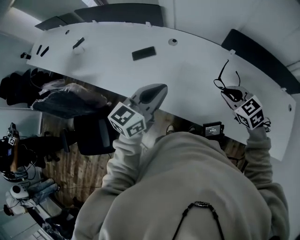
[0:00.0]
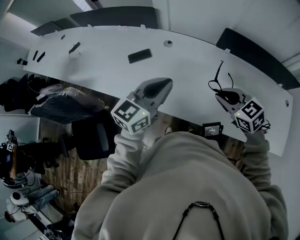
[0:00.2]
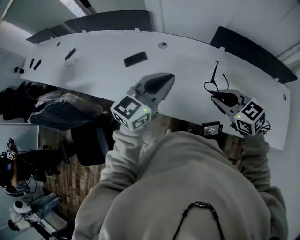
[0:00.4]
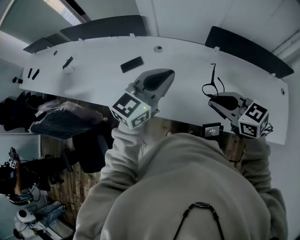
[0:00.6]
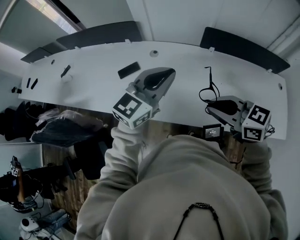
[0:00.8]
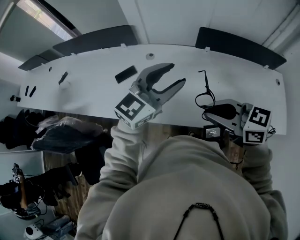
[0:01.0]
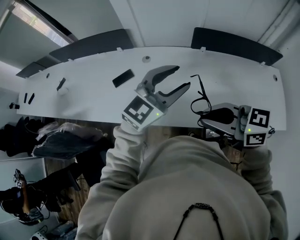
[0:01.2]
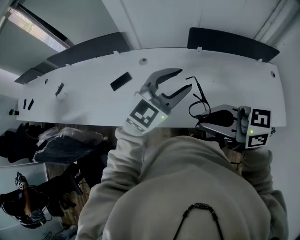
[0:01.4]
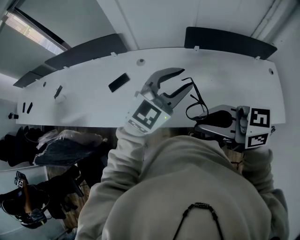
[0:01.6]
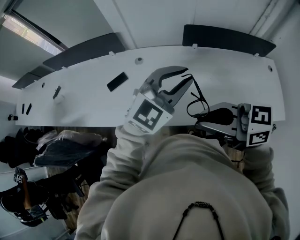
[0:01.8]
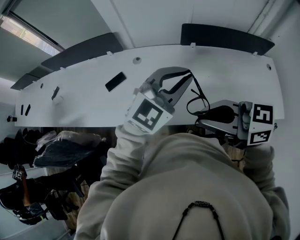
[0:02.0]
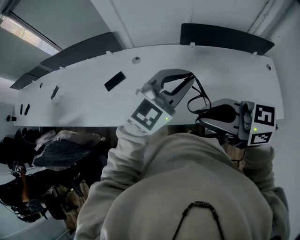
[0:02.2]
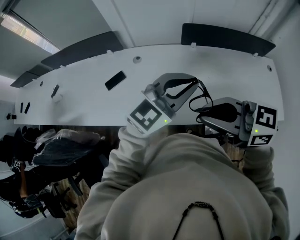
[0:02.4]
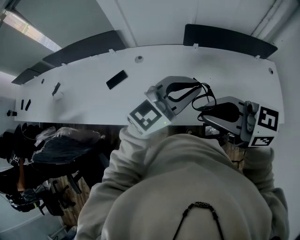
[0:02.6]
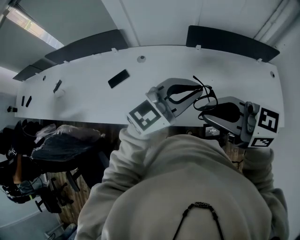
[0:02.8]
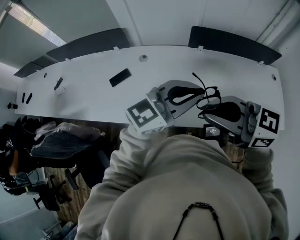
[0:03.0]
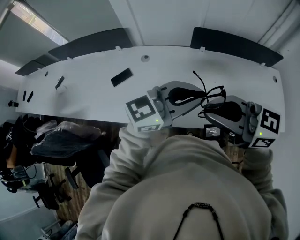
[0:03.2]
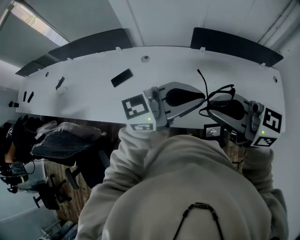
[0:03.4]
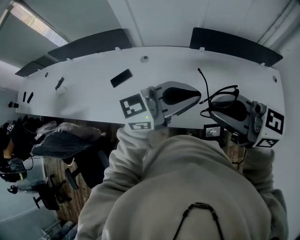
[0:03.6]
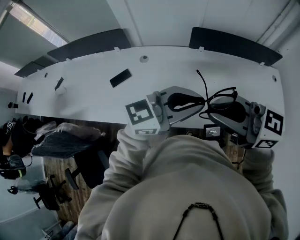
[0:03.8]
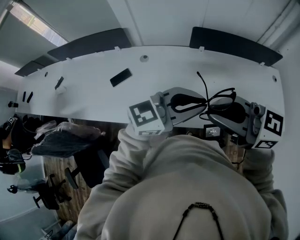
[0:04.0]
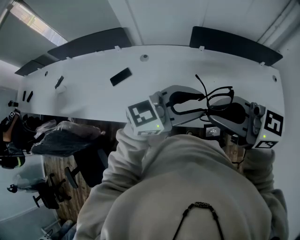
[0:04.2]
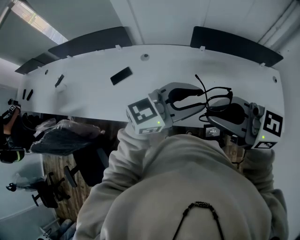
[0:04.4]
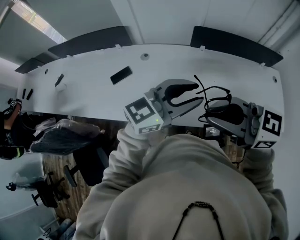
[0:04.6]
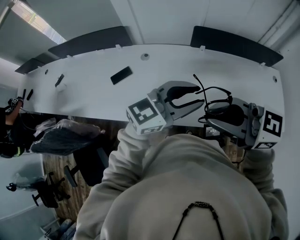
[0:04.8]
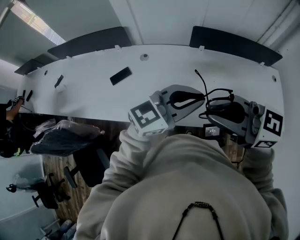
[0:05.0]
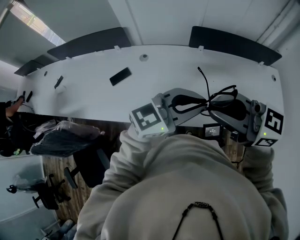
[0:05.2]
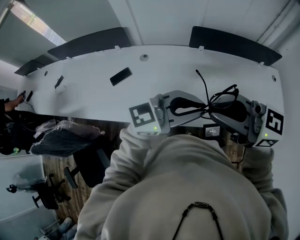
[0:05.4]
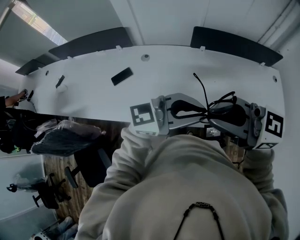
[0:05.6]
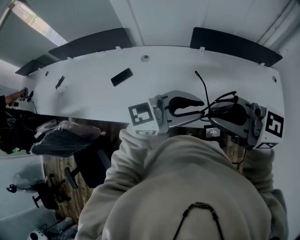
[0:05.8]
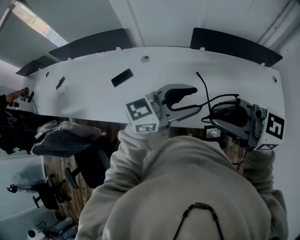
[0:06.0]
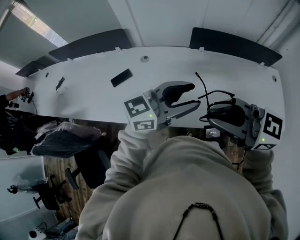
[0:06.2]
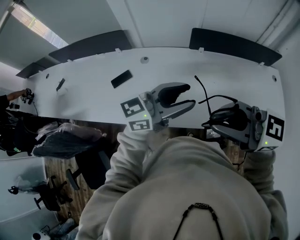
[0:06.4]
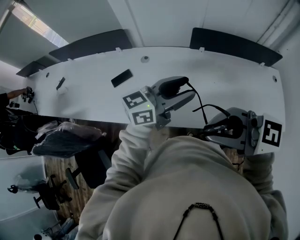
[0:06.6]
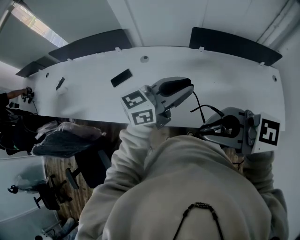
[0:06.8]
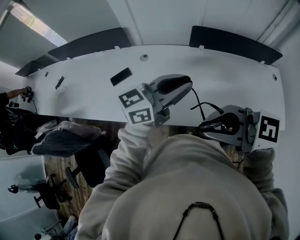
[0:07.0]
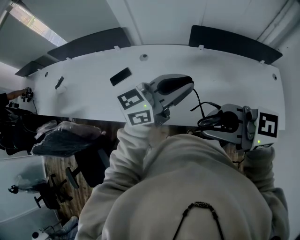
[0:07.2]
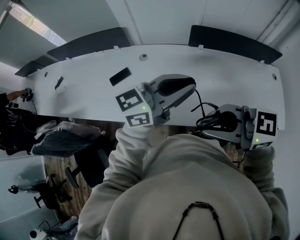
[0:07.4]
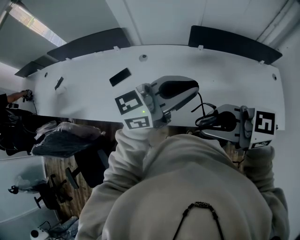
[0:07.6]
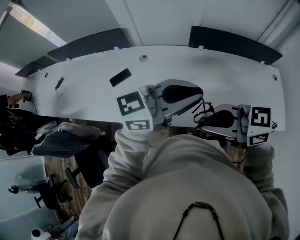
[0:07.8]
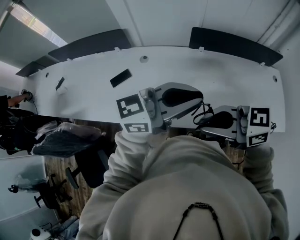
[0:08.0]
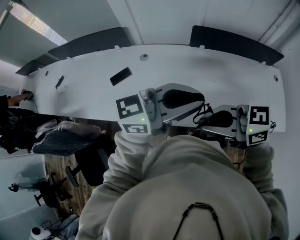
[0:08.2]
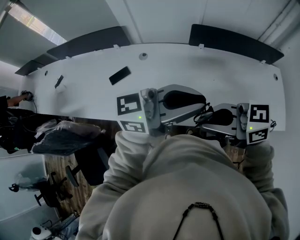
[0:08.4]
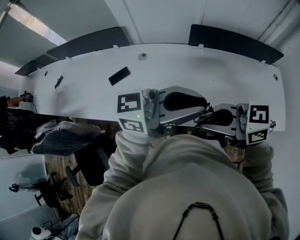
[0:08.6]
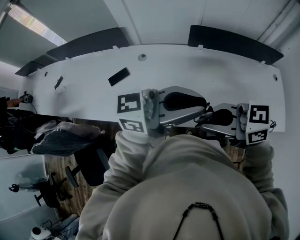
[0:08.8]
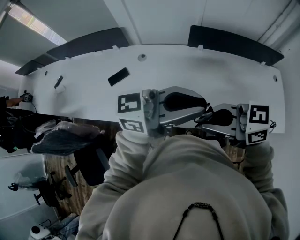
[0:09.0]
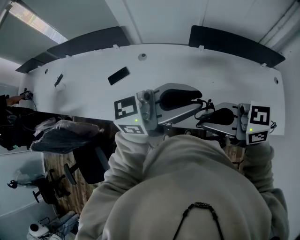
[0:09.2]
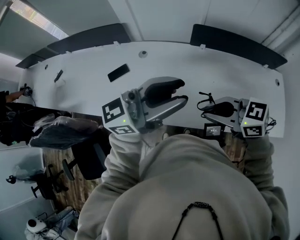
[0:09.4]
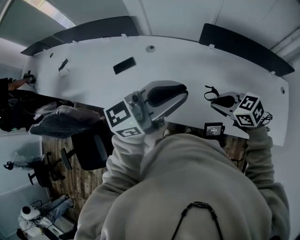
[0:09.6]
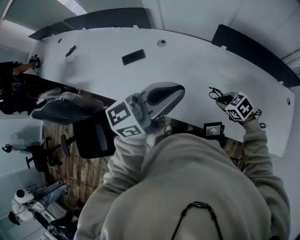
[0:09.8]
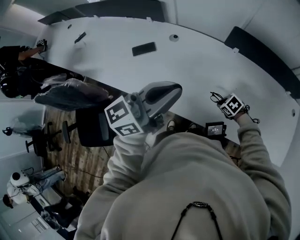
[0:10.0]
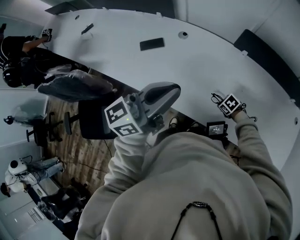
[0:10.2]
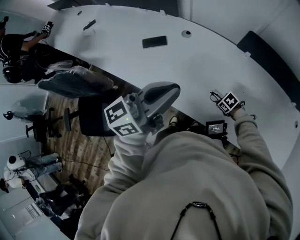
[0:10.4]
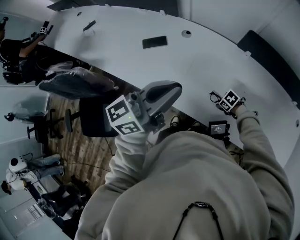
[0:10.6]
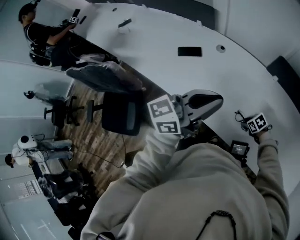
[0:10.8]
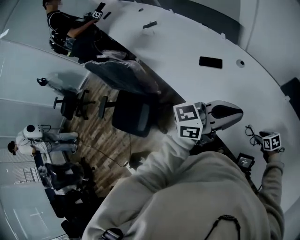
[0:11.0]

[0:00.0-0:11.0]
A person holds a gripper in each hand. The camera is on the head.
0.0 to 1.6 s: The right gripper is displaced upward by about 20 cm, and tips its fingers upward by roughly 30 degrees. Meanwhile the left gripper moves some 20 cm, rotates approximately 50 degrees, and opens up.
1.6 to 3.2 s: The left gripper shifts by approximately 5 cm, turns by roughly 30 degrees, and closes up. Meanwhile the right gripper ends up approximately 5 cm from where it was.
3.2 to 4.8 s: The left gripper opens.
4.8 to 6.2 s: The left gripper closes, then reopens.
6.2 to 7.8 s: The right gripper heads downward, covering roughly 5 cm, while the left gripper closes up.
7.8 to 9.4 s: The left gripper opens its fingers. The right gripper shifts by roughly 10 cm.
9.4 to 11.0 s: The left gripper shifts by about 10 cm, rotates roughly 30 degrees, and closes its fingers. The right gripper travels downward by roughly 35 cm, points its fingers roughly 40 degrees further downward, and opens its fingers.

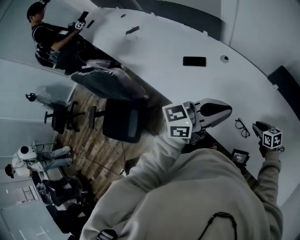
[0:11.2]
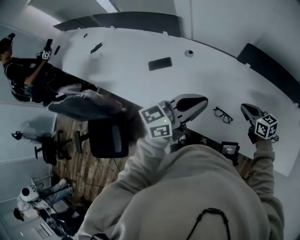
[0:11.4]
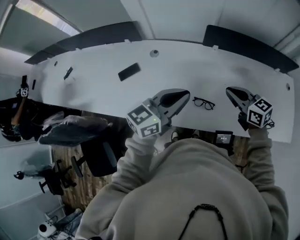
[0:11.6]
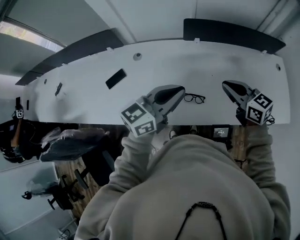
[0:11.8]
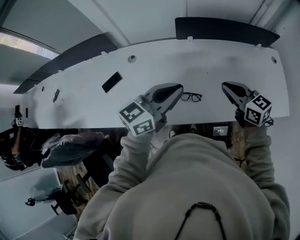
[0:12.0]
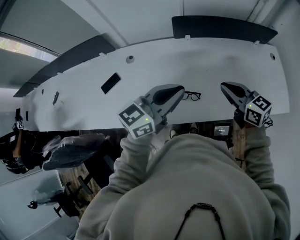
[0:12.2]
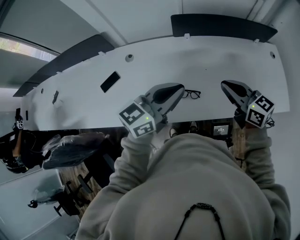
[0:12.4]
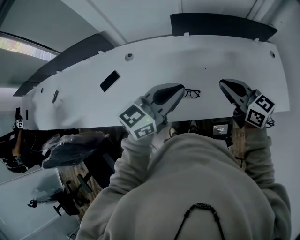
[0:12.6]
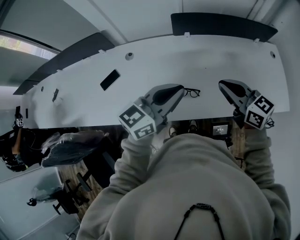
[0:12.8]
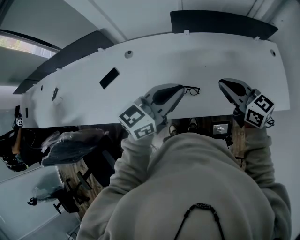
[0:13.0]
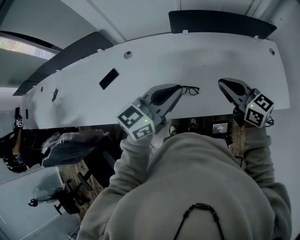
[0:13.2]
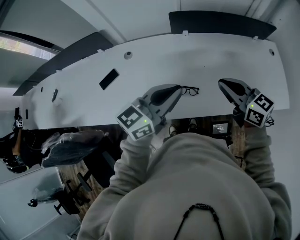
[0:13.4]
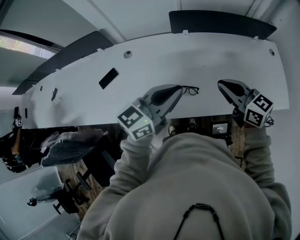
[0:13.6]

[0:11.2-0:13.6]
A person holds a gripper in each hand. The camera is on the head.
11.2 to 12.4 s: The left gripper ends up approximately 15 cm from where it was, and turns by some 20 degrees, while the right gripper goes approximately 25 cm upward, points its fingers roughly 30 degrees further upward, and closes.
12.4 to 13.6 s: There are only small adjustments of the grippers.

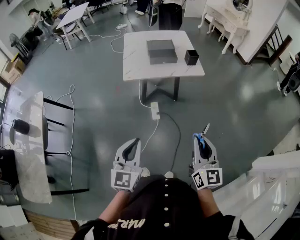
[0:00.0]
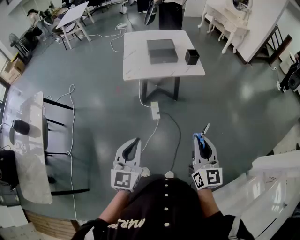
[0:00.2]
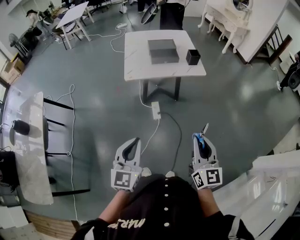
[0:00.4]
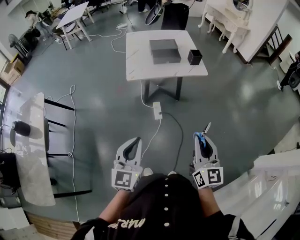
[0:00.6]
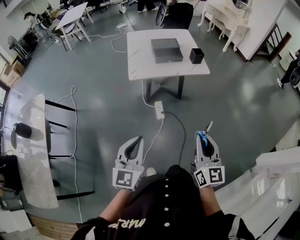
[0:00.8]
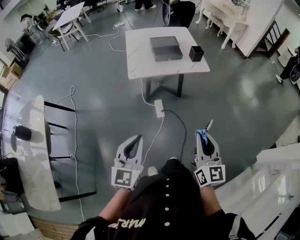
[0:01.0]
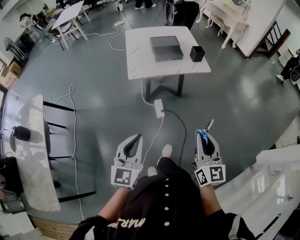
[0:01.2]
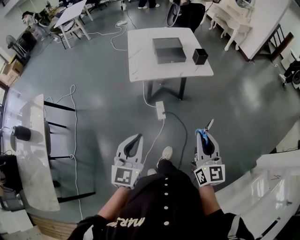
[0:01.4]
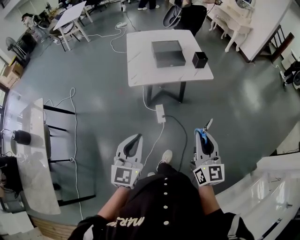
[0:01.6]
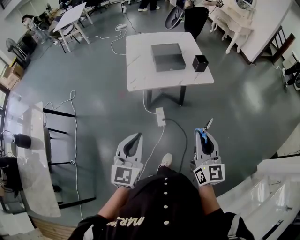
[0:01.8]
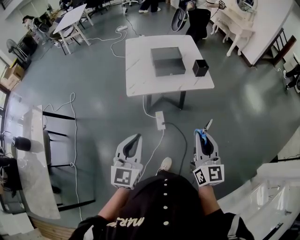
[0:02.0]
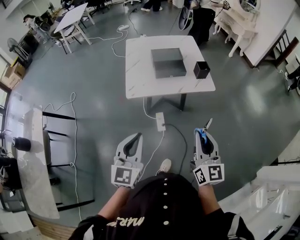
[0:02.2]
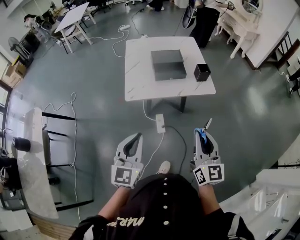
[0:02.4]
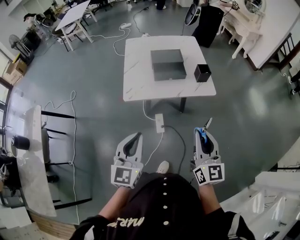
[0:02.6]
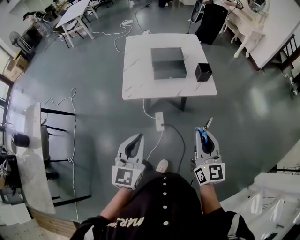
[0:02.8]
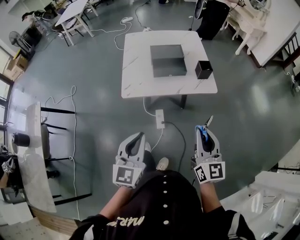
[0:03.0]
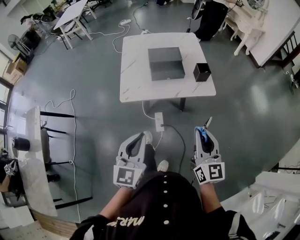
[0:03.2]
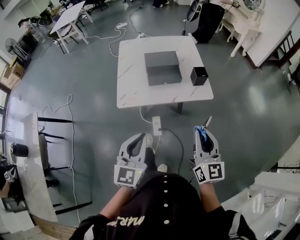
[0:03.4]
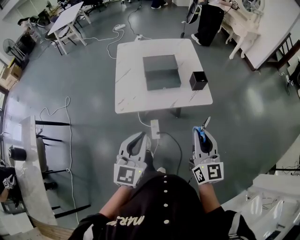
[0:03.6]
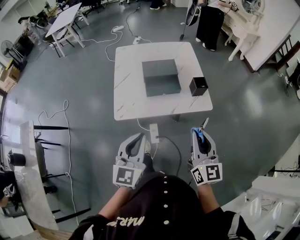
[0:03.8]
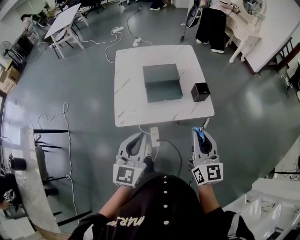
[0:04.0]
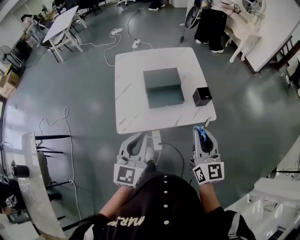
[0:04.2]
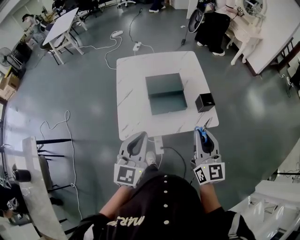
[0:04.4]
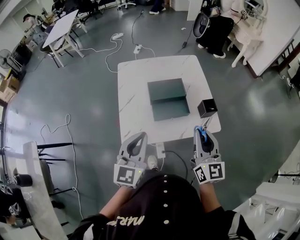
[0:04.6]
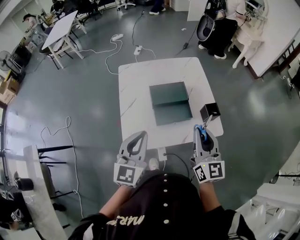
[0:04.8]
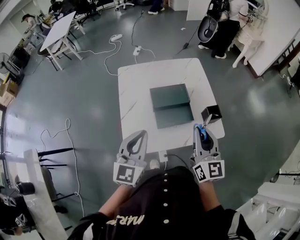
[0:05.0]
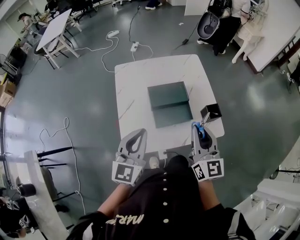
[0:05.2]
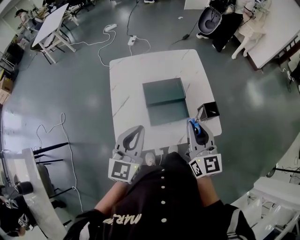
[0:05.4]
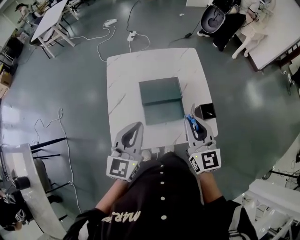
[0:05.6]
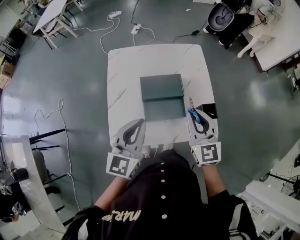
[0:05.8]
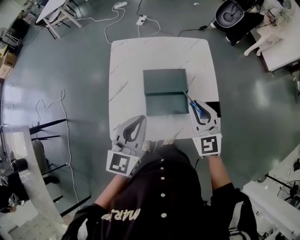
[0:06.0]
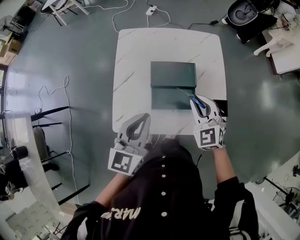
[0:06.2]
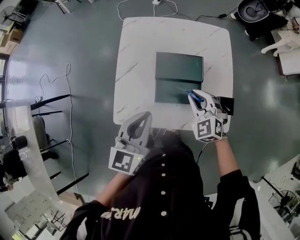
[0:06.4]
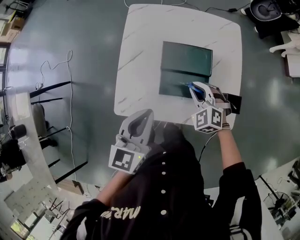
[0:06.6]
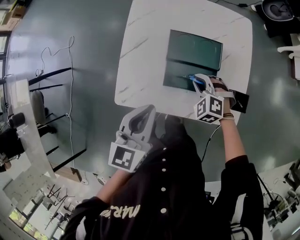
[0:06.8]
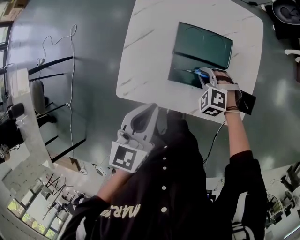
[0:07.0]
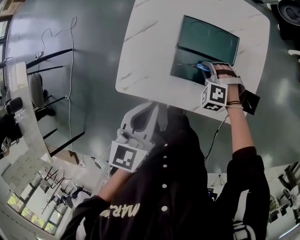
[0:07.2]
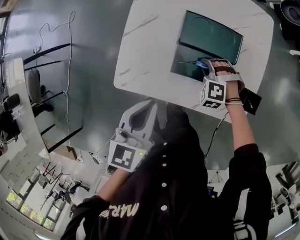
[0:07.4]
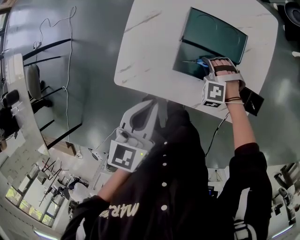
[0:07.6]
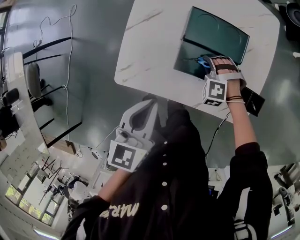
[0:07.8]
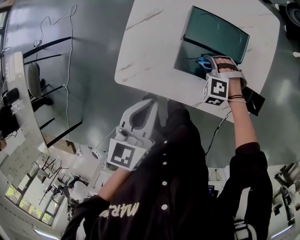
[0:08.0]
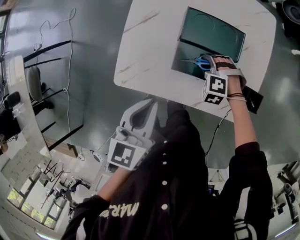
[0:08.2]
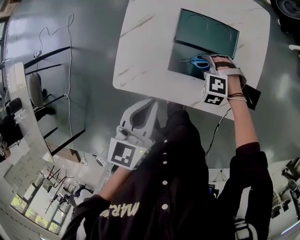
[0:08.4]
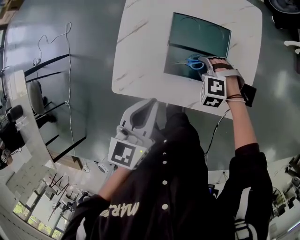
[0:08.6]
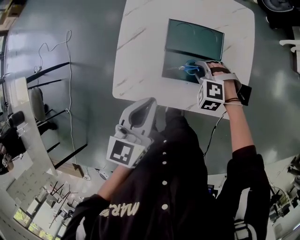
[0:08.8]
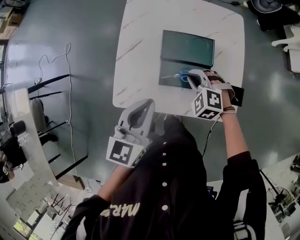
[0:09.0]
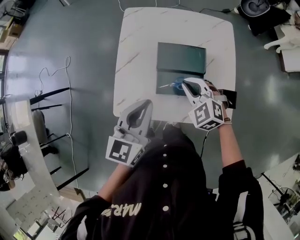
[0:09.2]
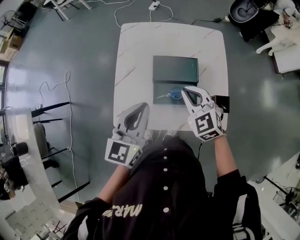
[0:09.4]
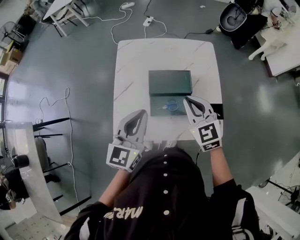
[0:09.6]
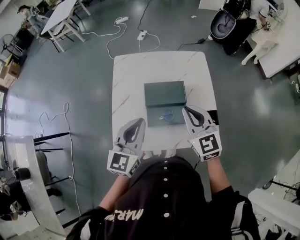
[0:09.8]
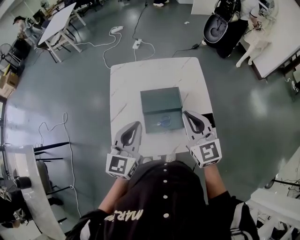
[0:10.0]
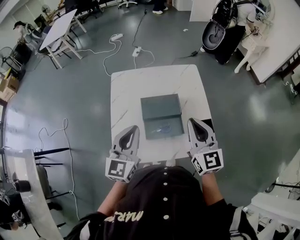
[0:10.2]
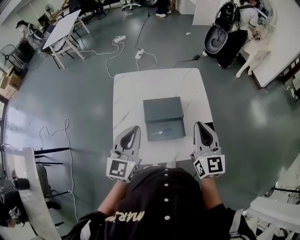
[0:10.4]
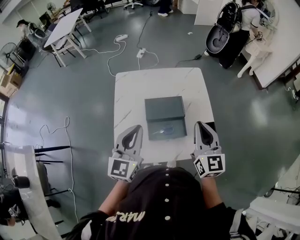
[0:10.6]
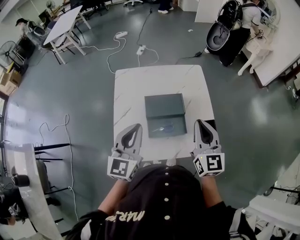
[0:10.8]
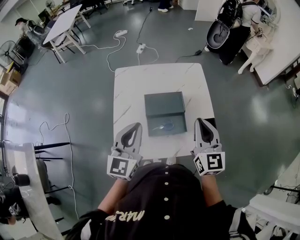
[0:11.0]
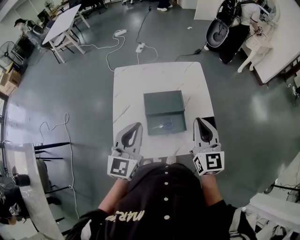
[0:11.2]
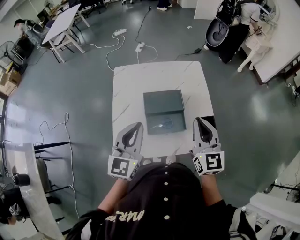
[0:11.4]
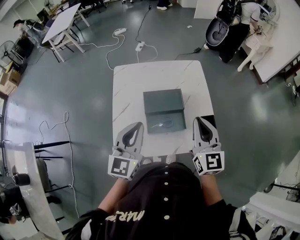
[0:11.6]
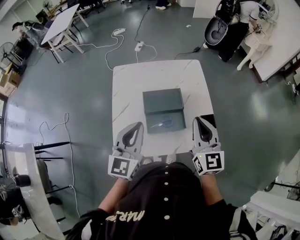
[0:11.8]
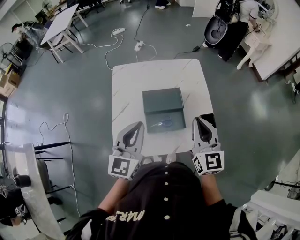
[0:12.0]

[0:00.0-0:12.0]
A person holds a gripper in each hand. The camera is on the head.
0.0 to 1.6 s: The grippers both shift forward and to the left by approximately 10 cm.
1.6 to 3.0 s: The left gripper goes approximately 15 cm forward and to the right. The right gripper is displaced forward by some 20 cm.
3.0 to 4.4 s: The grippers both shift forward by about 25 cm.
4.4 to 6.0 s: The grippers both shift forward by roughly 20 cm. The right gripper rotates roughly 40 degrees.
6.0 to 7.6 s: The right gripper moves downward, some 30 cm, and points its fingers about 50 degrees further downward, while the left gripper shifts some 15 cm downward, and turns by about 30 degrees.
7.6 to 9.0 s: The right gripper travels upward by roughly 15 cm, turns by approximately 30 degrees, and opens, then closes once more; the left gripper goes about 5 cm upward.
9.0 to 10.4 s: The left gripper moves upward, about 10 cm, and changes its angle by some 20 degrees, while the right gripper travels upward by some 25 cm, and tips its fingers upward by about 50 degrees.
10.4 to 12.0 s: There are only small adjustments of the grippers.
